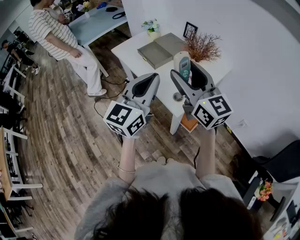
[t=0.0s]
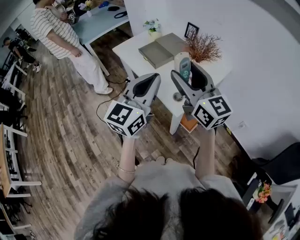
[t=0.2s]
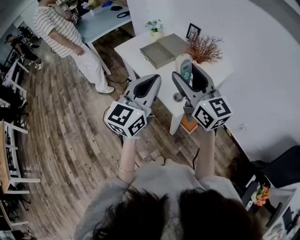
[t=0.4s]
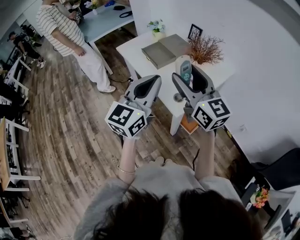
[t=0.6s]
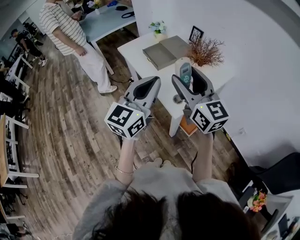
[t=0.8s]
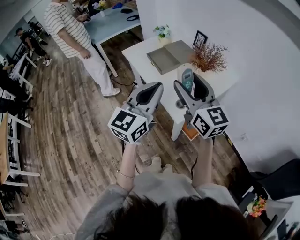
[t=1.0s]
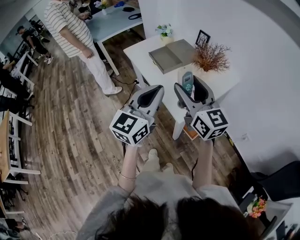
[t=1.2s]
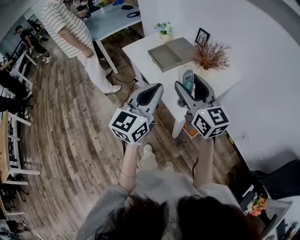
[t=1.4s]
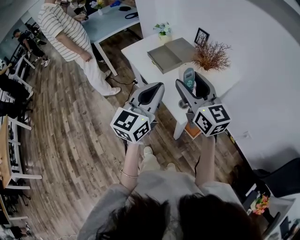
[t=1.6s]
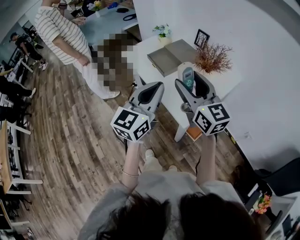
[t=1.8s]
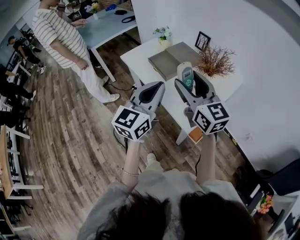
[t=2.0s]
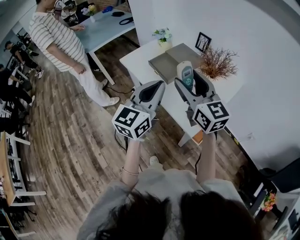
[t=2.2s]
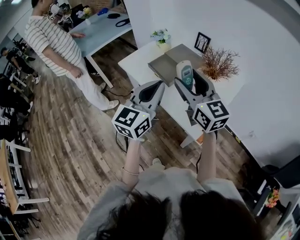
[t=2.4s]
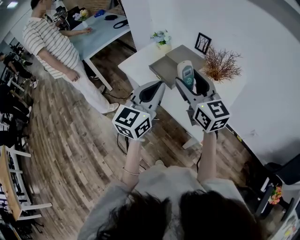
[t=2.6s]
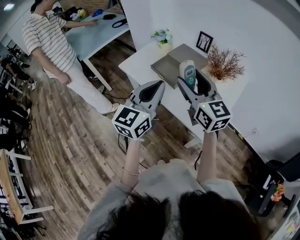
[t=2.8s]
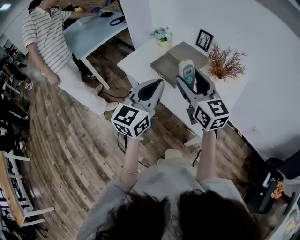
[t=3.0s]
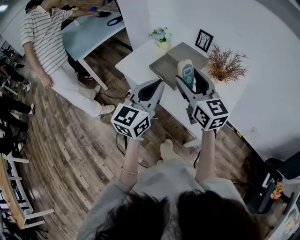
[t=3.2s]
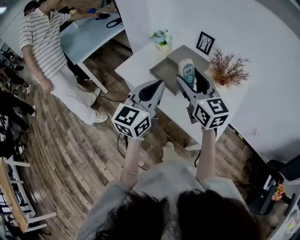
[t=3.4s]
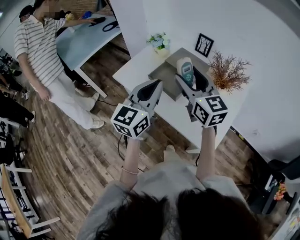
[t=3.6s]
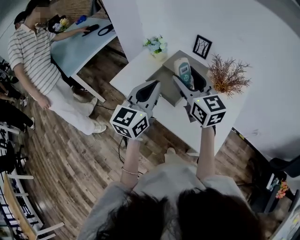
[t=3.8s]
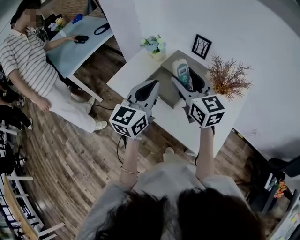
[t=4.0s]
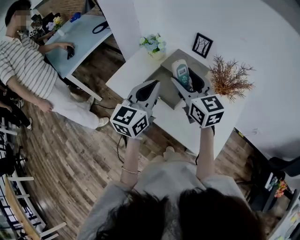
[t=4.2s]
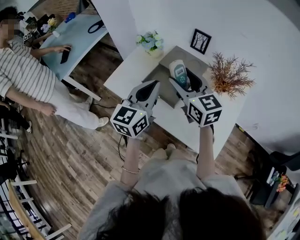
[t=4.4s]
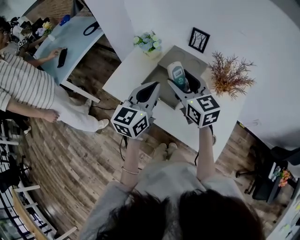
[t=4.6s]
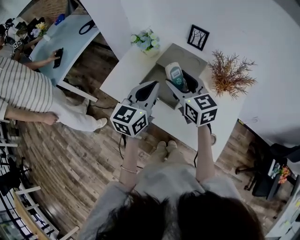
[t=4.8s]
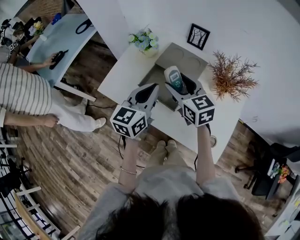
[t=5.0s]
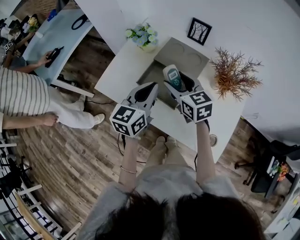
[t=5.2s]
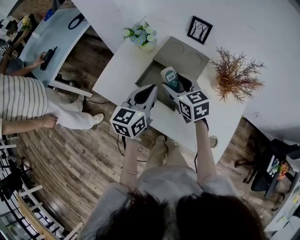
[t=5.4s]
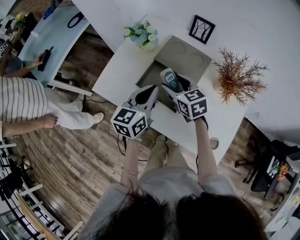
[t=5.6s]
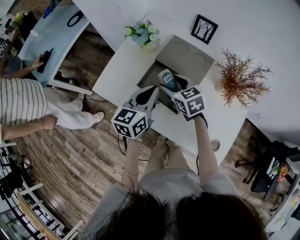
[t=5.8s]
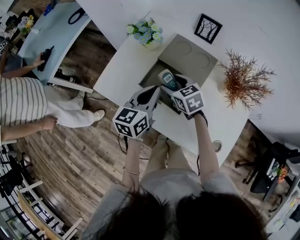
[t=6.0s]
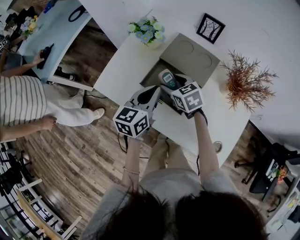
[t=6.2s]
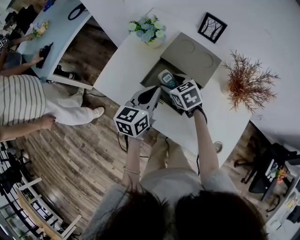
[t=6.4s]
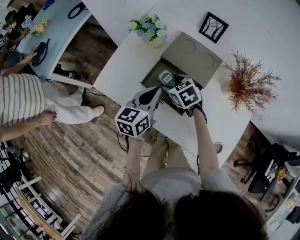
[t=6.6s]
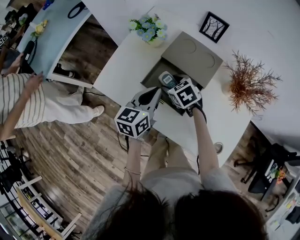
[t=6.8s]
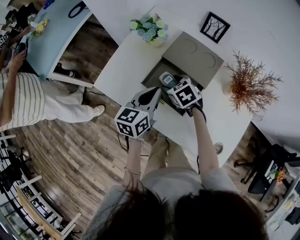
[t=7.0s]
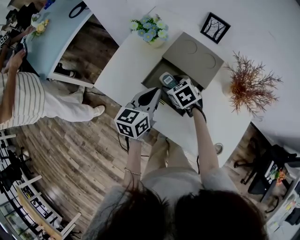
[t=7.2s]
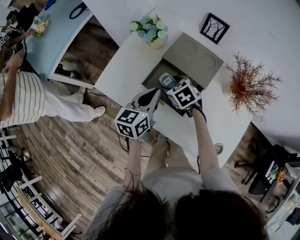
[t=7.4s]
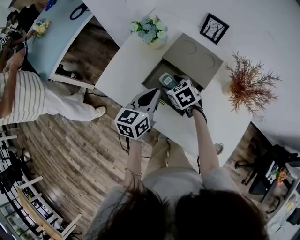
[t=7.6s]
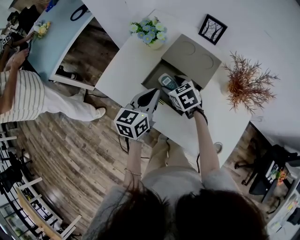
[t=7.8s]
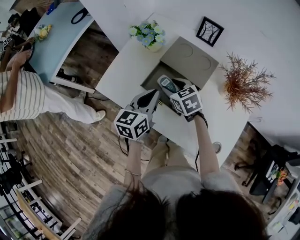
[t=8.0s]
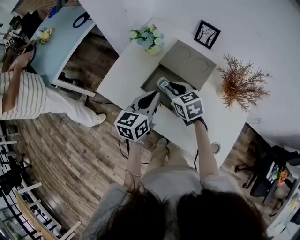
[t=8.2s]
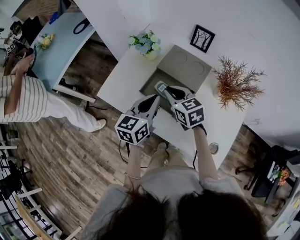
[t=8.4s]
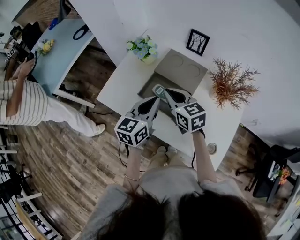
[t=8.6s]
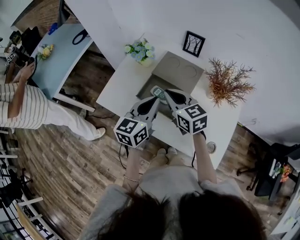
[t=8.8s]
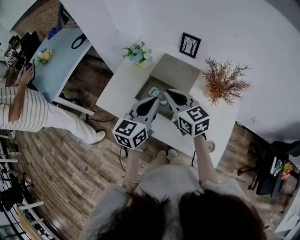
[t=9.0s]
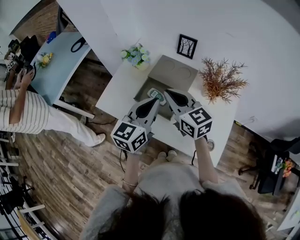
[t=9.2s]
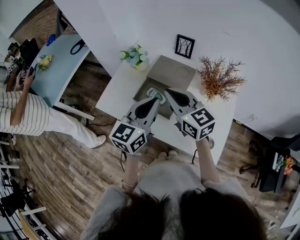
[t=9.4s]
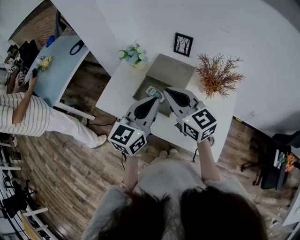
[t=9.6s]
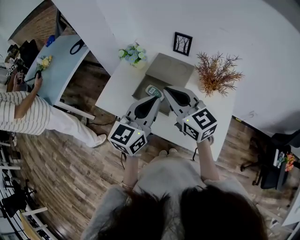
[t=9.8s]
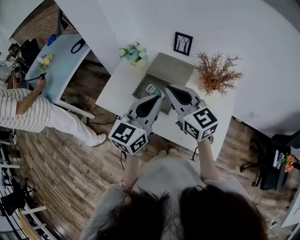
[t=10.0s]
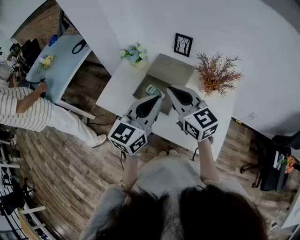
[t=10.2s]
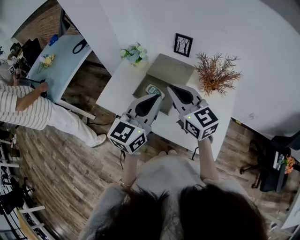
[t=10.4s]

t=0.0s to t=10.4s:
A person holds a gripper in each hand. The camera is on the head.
t=0.0s to t=1.4s: The grippers stay close to where they were, moving slightly.
t=1.4s to t=3.0s: Both grippers move forward and to the left, some 20 cm.
t=3.0s to t=4.4s: Both grippers move forward, roughly 20 cm.
t=4.4s to t=6.0s: The grippers both shift downward and forward by about 20 cm. The right gripper points its fingers about 30 degrees further downward.
t=6.0s to t=7.4s: The right gripper travels downward by some 5 cm.
t=7.4s to t=9.0s: The left gripper shifts some 15 cm upward and backward. Meanwhile the right gripper heads upward, covering approximately 20 cm, angles its fingers upward, by roughly 40 degrees, and closes up.
t=9.0s to t=10.4s: The two grippers go roughly 10 cm upward and backward.
